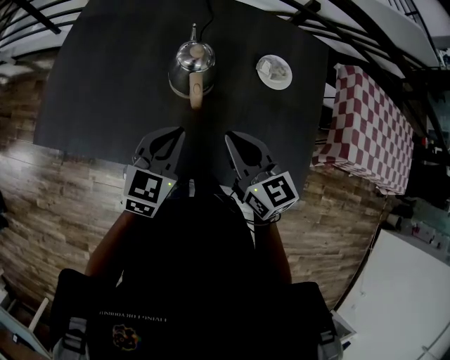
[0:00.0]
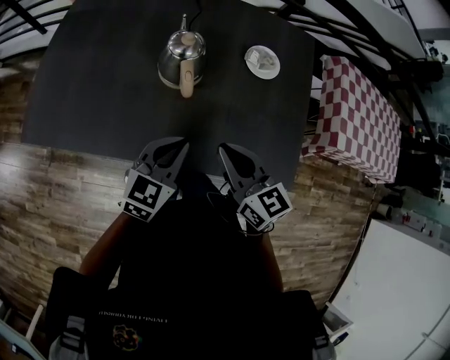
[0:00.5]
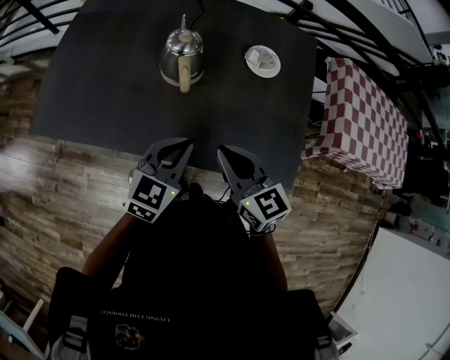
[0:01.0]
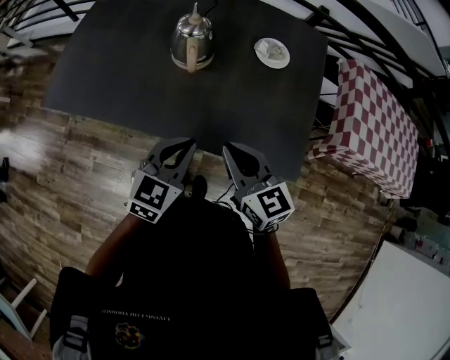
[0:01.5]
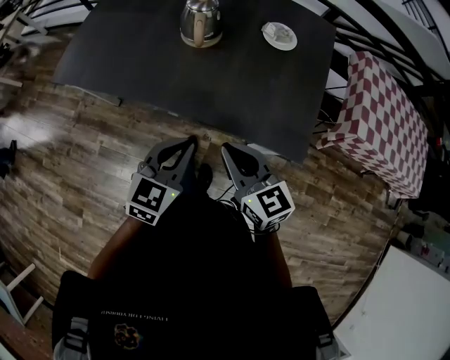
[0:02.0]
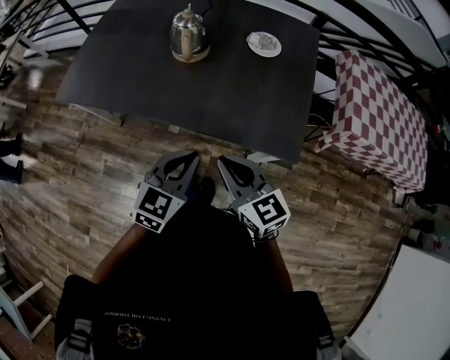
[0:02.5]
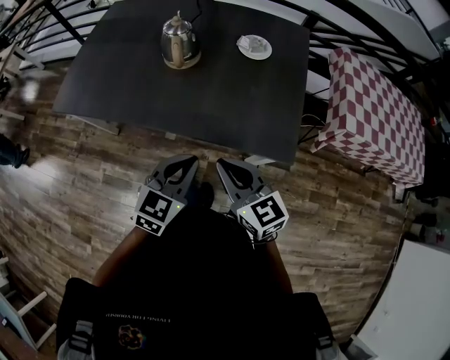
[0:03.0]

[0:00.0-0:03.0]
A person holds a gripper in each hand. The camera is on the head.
0:00.0 to 0:01.5: The right gripper goes approximately 15 cm backward; the left gripper goes about 15 cm backward and to the right.
0:01.5 to 0:03.0: The right gripper is displaced backward by roughly 15 cm, while the left gripper shifts about 15 cm backward and to the right.

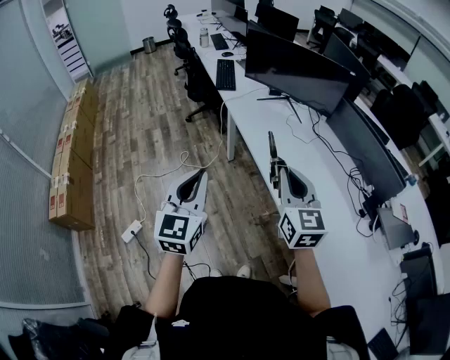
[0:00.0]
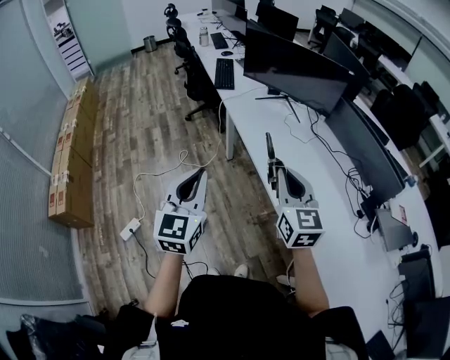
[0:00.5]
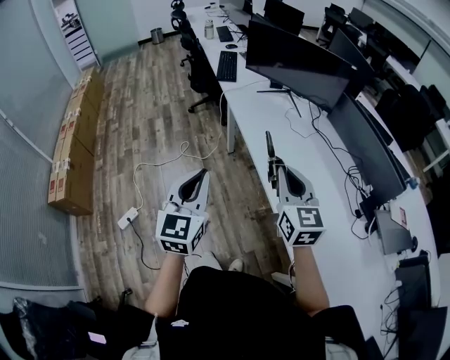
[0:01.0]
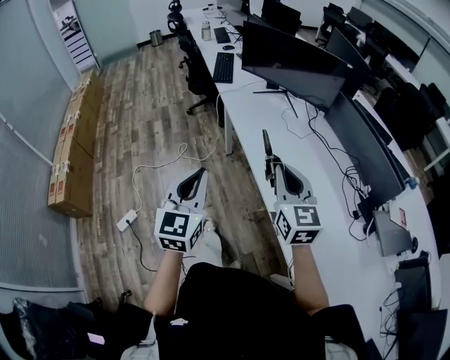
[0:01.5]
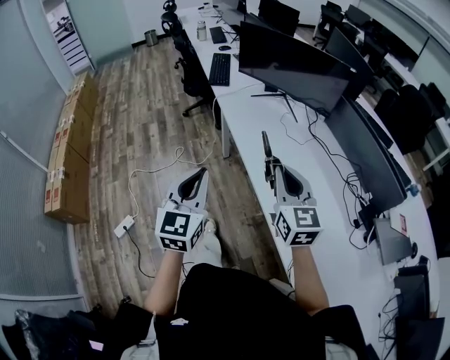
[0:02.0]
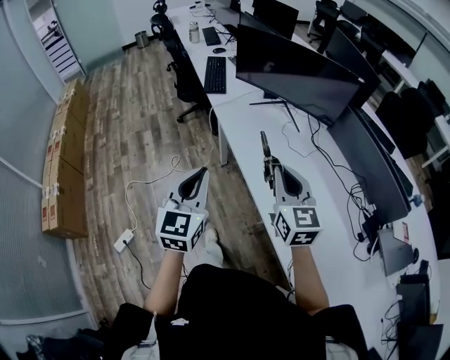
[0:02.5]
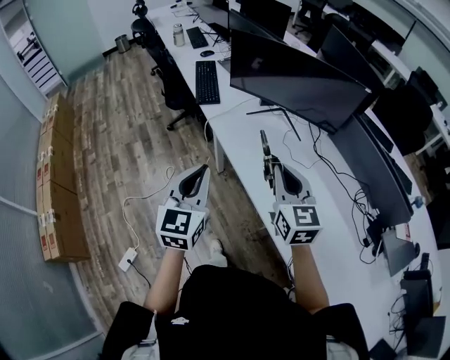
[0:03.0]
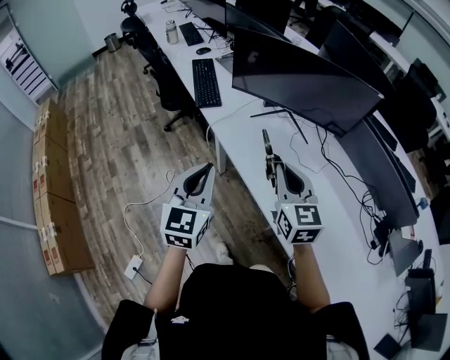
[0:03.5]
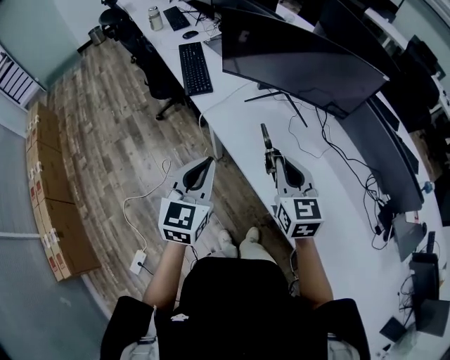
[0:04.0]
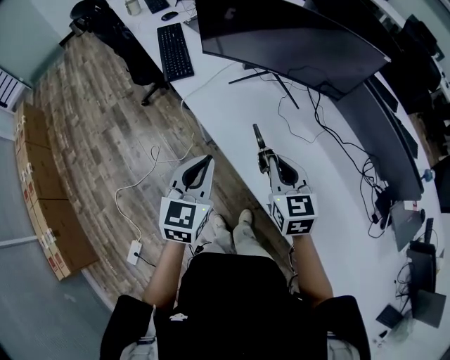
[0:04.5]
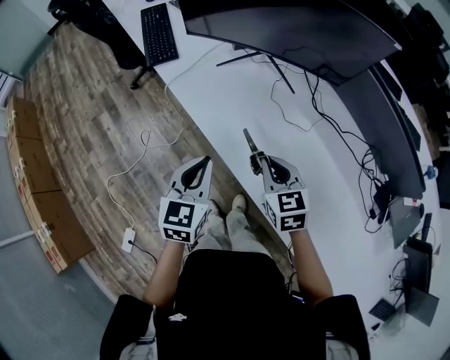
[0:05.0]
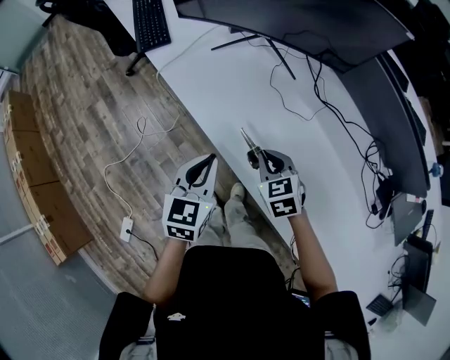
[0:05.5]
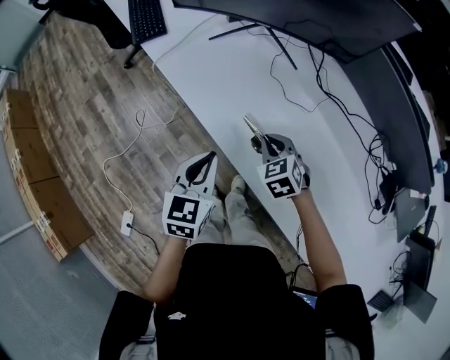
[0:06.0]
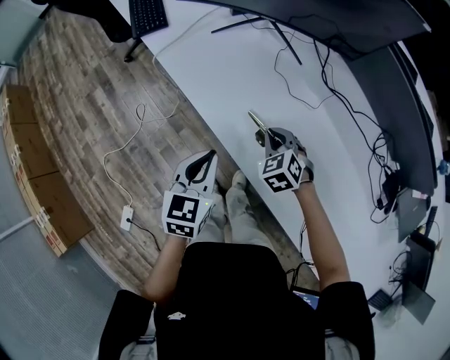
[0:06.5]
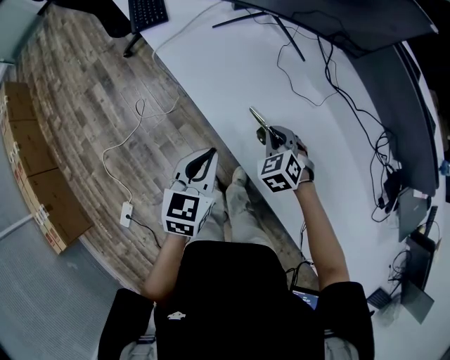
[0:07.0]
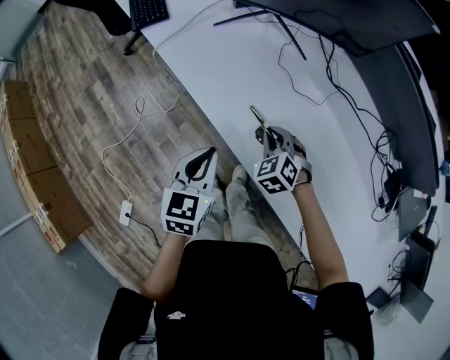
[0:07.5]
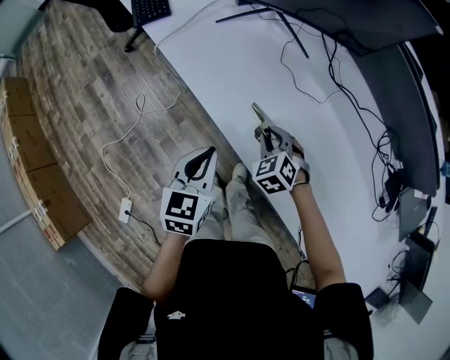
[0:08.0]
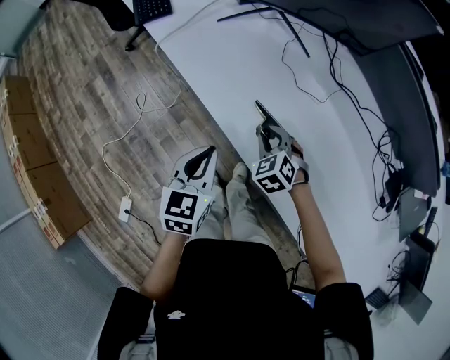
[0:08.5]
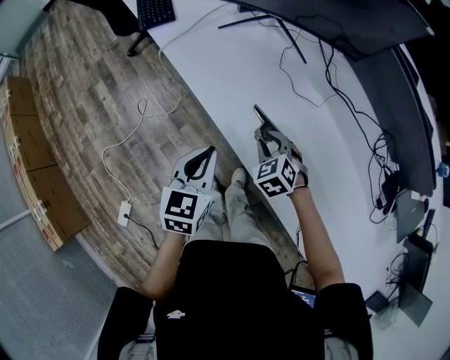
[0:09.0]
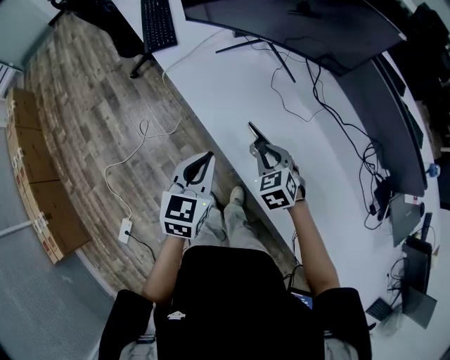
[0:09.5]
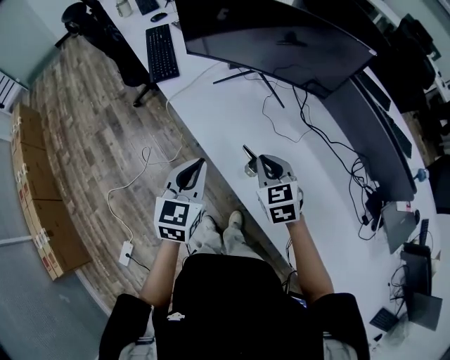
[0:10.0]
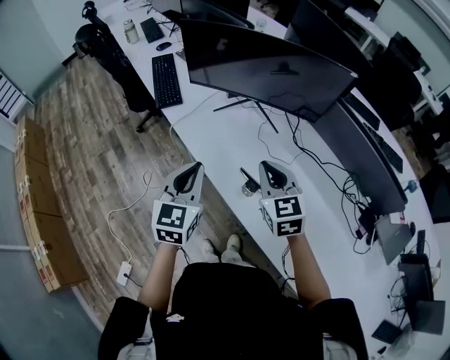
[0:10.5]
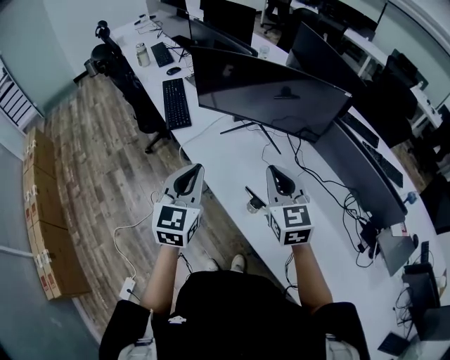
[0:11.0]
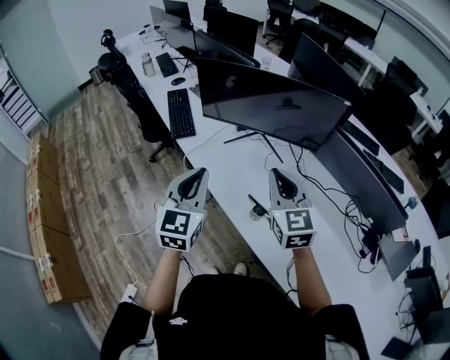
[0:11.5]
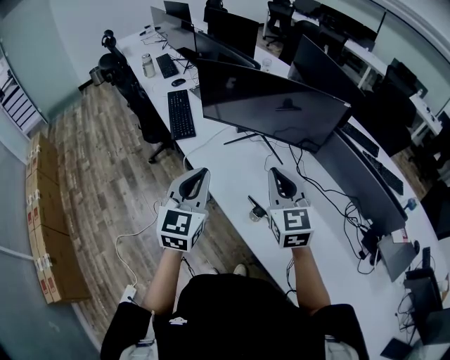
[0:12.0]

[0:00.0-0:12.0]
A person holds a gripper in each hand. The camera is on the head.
0:00.0 to 0:02.0: The two grippers go roughly 10 cm to the right and forward.
0:02.0 to 0:04.0: The left gripper is displaced forward by roughly 35 cm. The right gripper goes about 30 cm forward and to the left.
0:04.0 to 0:06.0: The right gripper goes about 25 cm downward, and tilts its fingers roughly 40 degrees downward, while the left gripper moves downward and to the right, about 25 cm, and turns by roughly 20 degrees.
0:06.0 to 0:08.0: The right gripper shifts by approximately 5 cm.
0:08.0 to 0:10.0: Both grippers move upward, approximately 15 cm. The right gripper turns by approximately 30 degrees.
0:10.0 to 0:12.0: Both grippers travel together upward, about 20 cm. The right gripper swivels some 30 degrees.

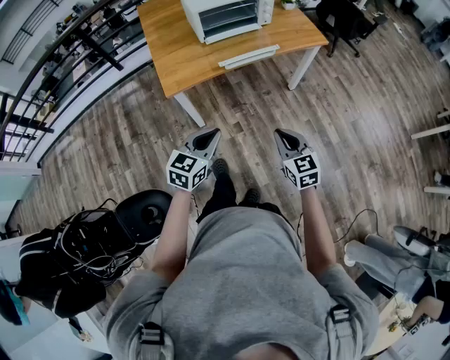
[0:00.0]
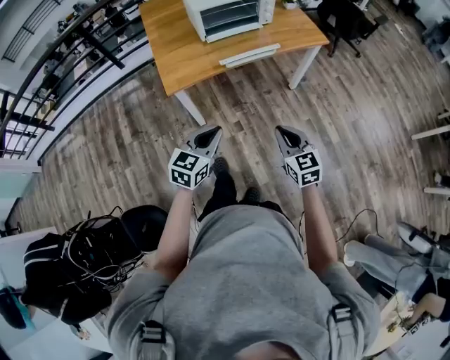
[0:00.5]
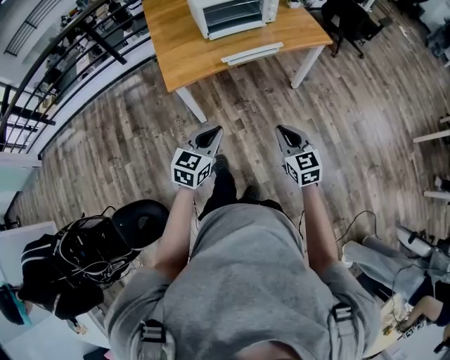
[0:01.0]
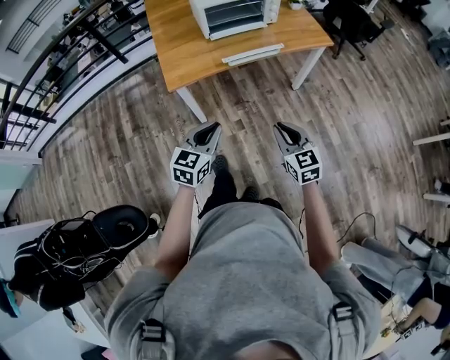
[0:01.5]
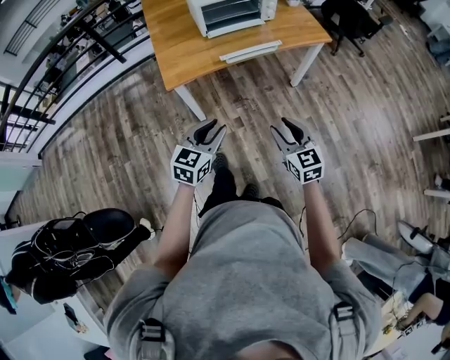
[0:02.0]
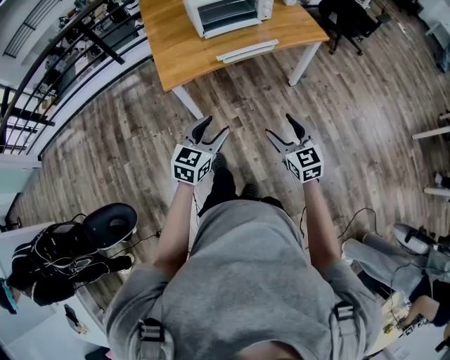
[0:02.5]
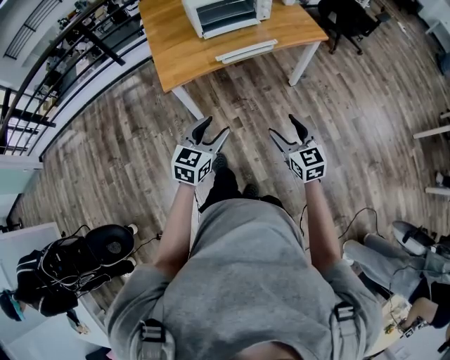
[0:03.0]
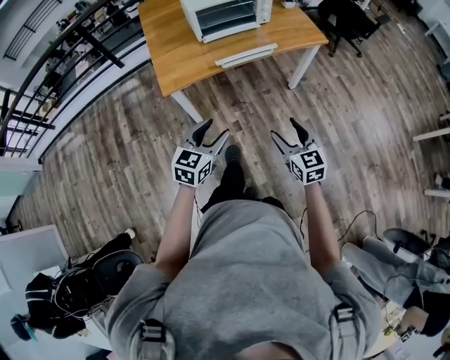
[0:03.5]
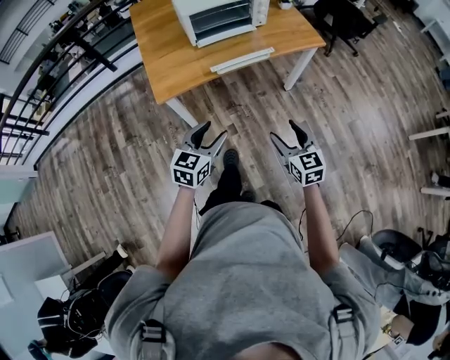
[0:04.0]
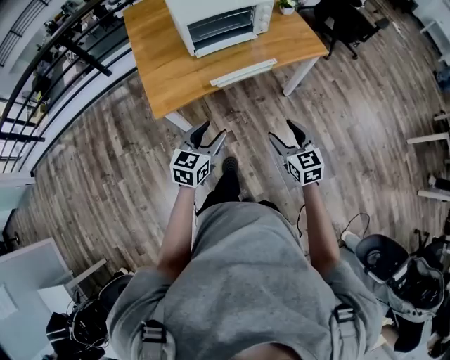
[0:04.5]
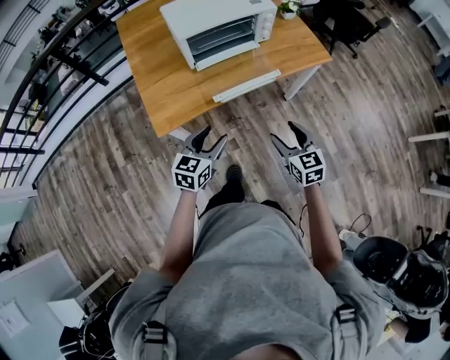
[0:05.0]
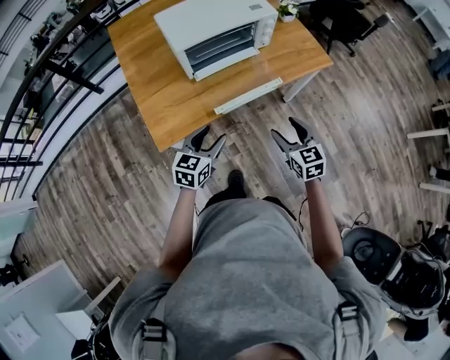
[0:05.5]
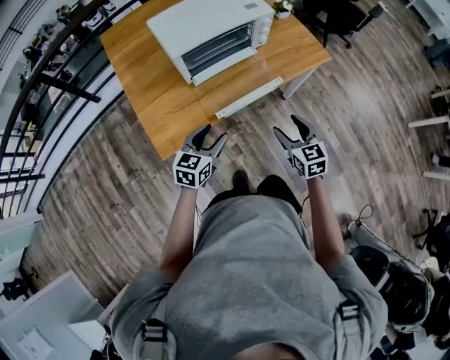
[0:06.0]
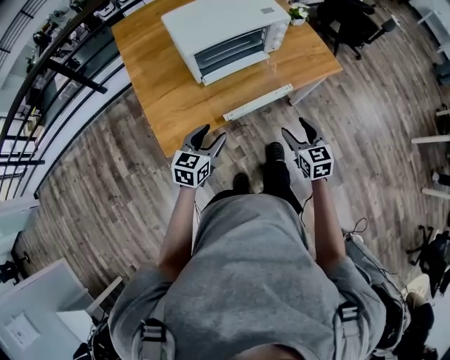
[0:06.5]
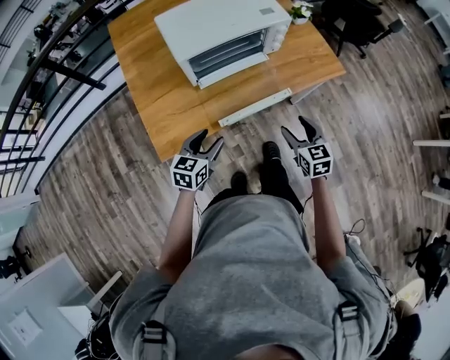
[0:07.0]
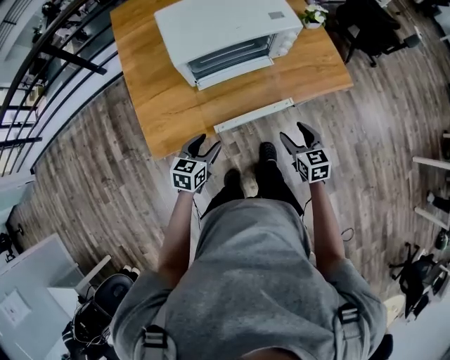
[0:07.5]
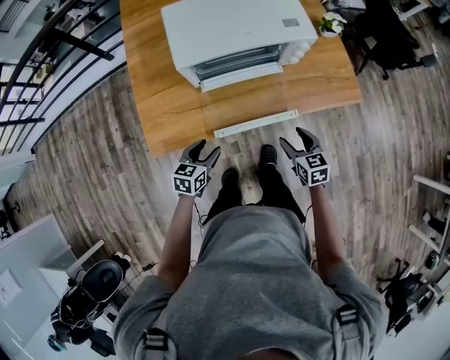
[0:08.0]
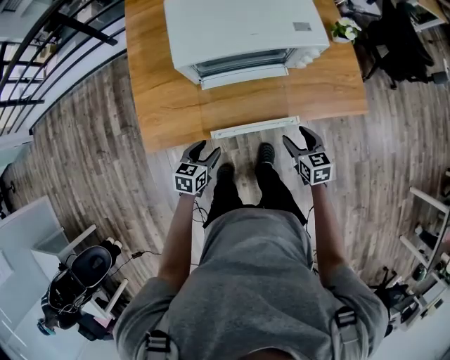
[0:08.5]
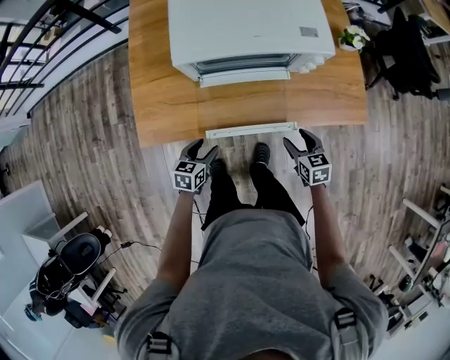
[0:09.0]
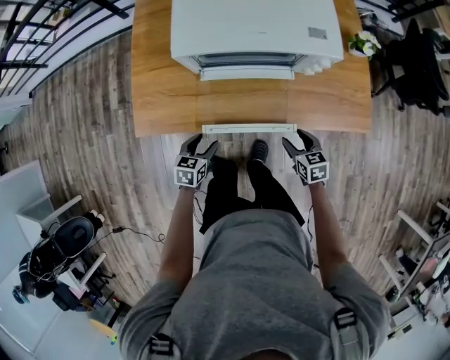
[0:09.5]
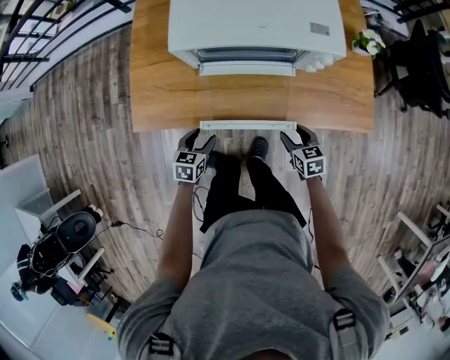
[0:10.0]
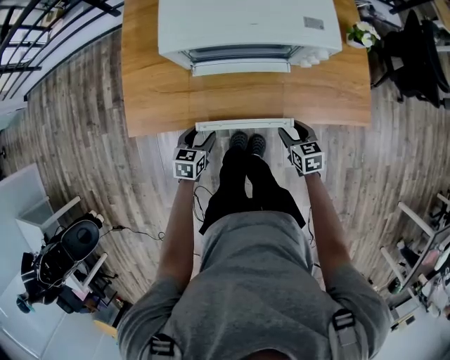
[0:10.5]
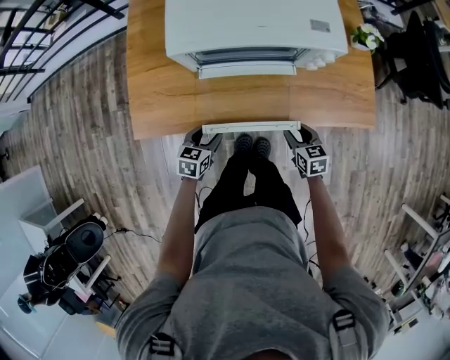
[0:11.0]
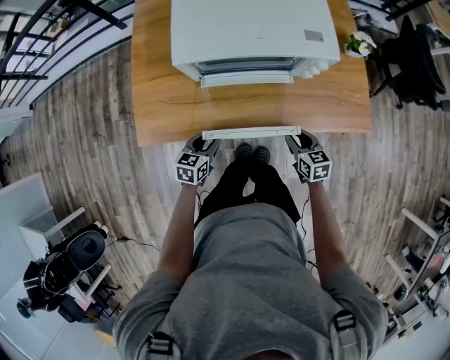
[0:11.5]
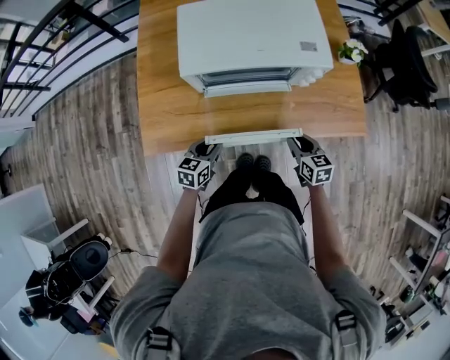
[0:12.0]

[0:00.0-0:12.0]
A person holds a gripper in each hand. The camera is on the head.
0:00.0 to 0:02.0: The left gripper opens its fingers. Meanwhile the right gripper opens its fingers.
0:02.0 to 0:04.0: The grippers both shift forward by some 5 cm. The left gripper opens up. The right gripper opens up.
0:04.0 to 0:06.0: Both grippers move forward, roughly 25 cm.
0:06.0 to 0:08.0: The left gripper heads downward and forward, covering about 15 cm, and changes its angle by roughly 30 degrees; the right gripper shifts about 20 cm forward and downward, and turns by some 20 degrees.
0:08.0 to 0:10.0: The left gripper is displaced downward by some 10 cm; the right gripper shifts approximately 15 cm downward and forward.
0:10.0 to 0:12.0: The two grippers go approximately 5 cm upward. The left gripper closes up, while the right gripper closes up.
